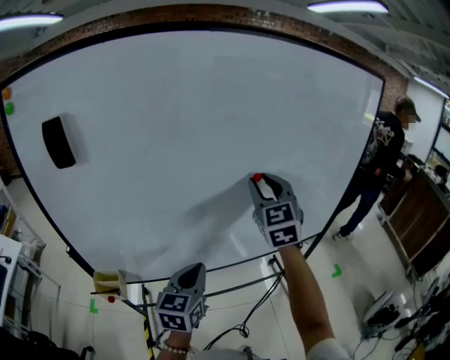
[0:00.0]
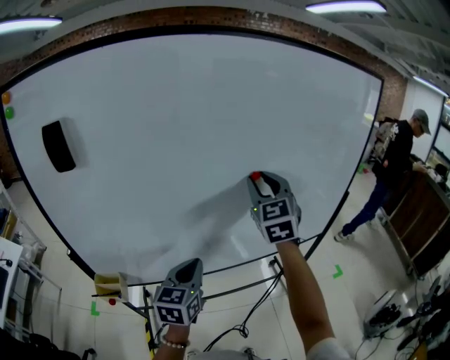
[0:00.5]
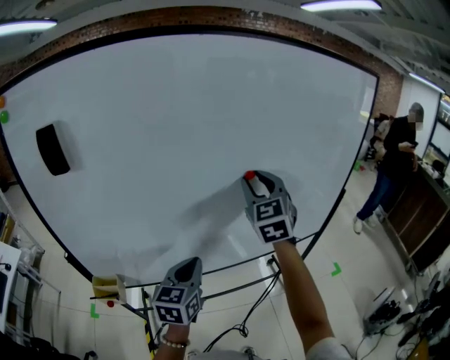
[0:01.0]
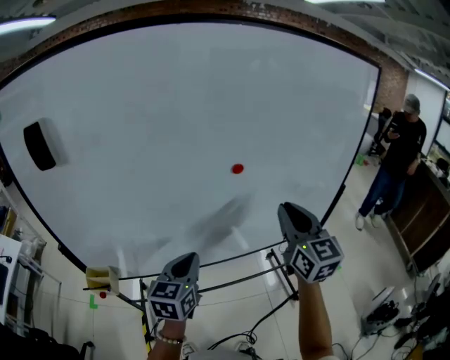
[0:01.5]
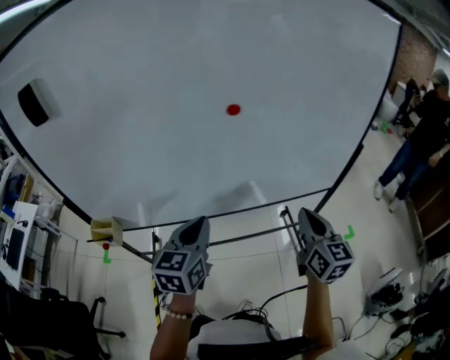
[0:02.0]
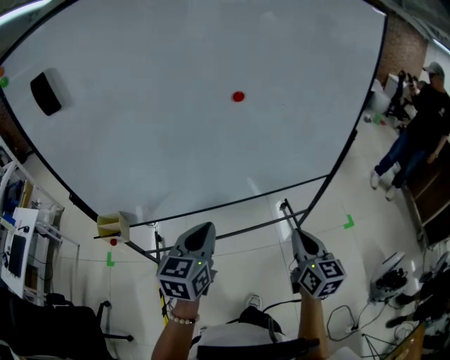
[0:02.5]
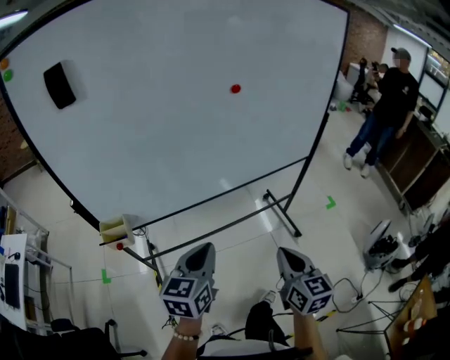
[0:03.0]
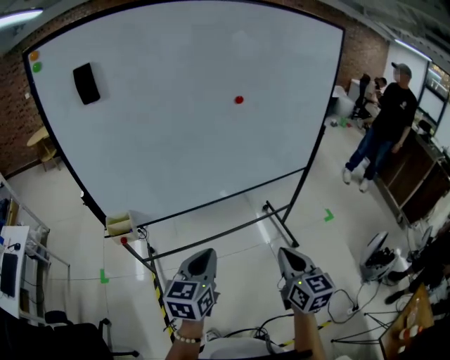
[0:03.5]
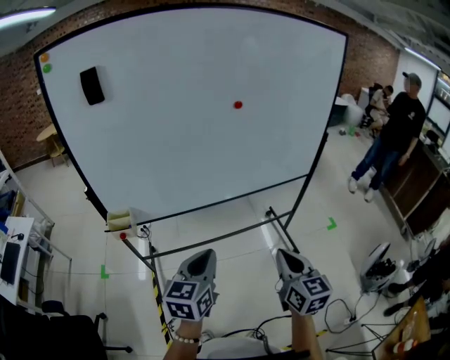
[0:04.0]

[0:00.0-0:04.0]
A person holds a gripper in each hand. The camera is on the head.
0:00.0 to 0:02.0: The left gripper heads to the right, covering roughly 10 cm; the right gripper goes approximately 30 cm to the right, downward and backward, rotates roughly 40 degrees, and closes.
0:02.0 to 0:04.0: The two grippers go about 30 cm backward.

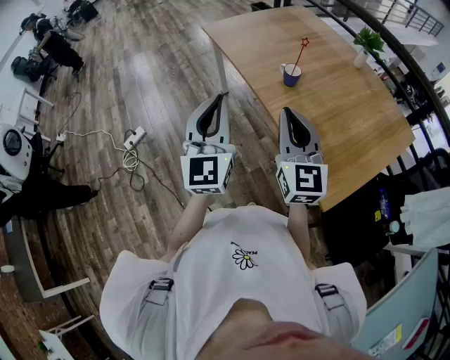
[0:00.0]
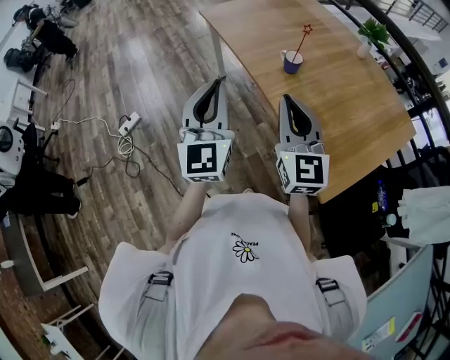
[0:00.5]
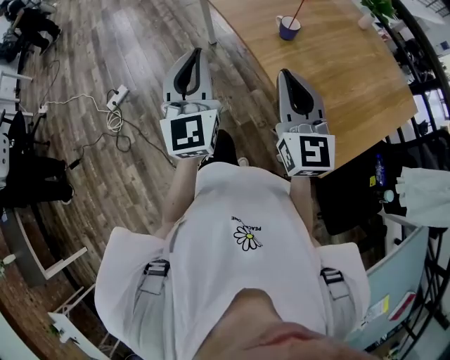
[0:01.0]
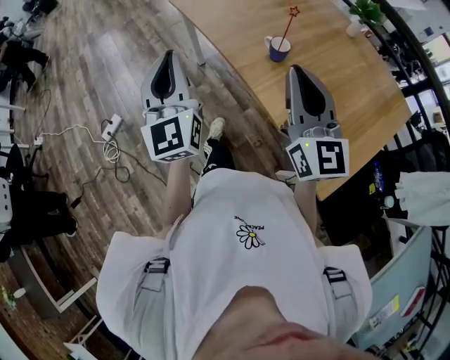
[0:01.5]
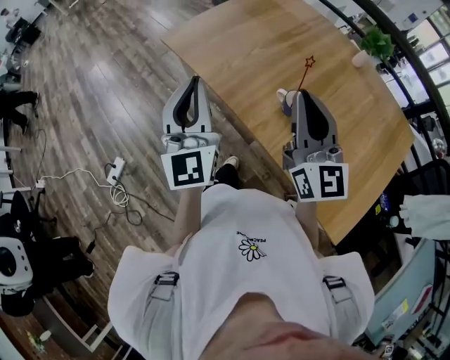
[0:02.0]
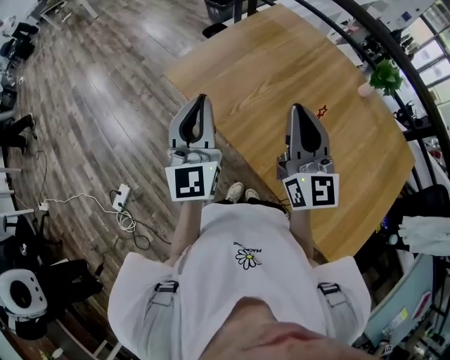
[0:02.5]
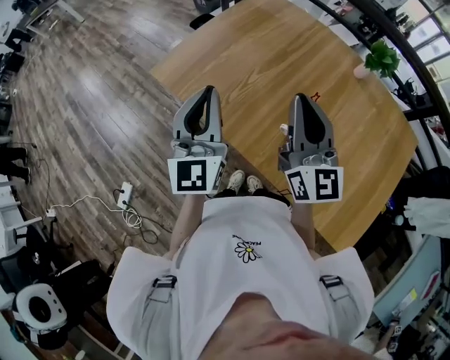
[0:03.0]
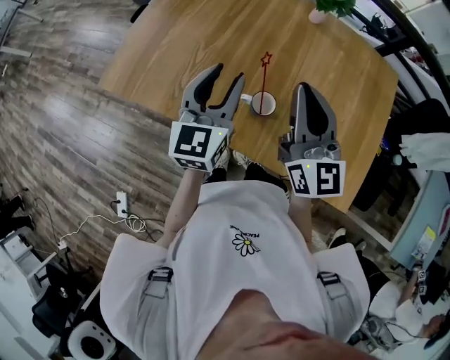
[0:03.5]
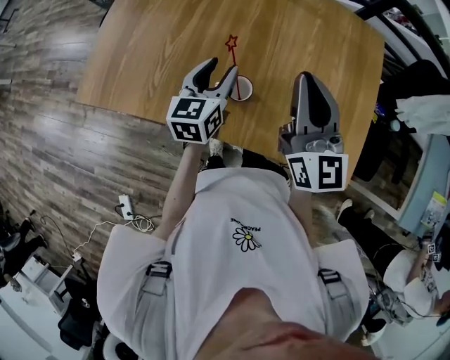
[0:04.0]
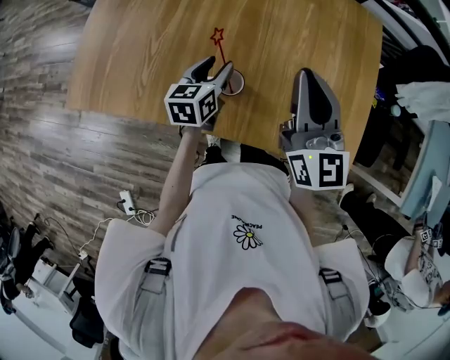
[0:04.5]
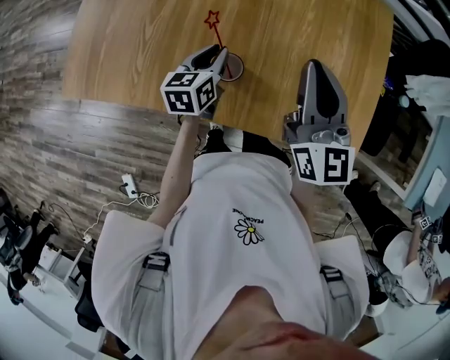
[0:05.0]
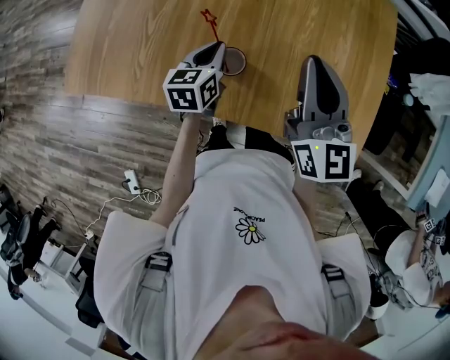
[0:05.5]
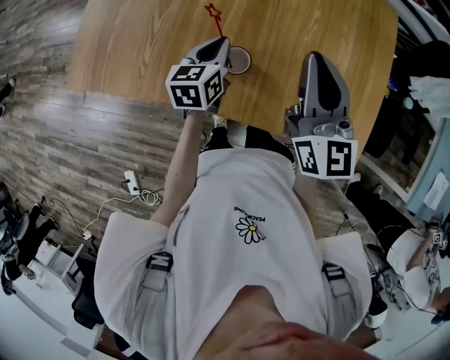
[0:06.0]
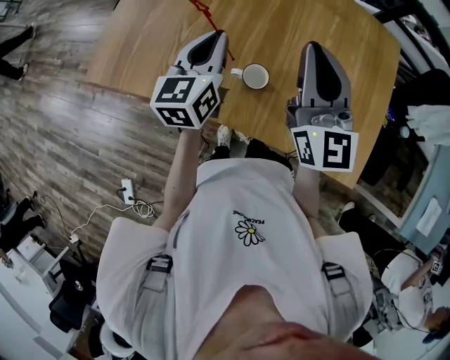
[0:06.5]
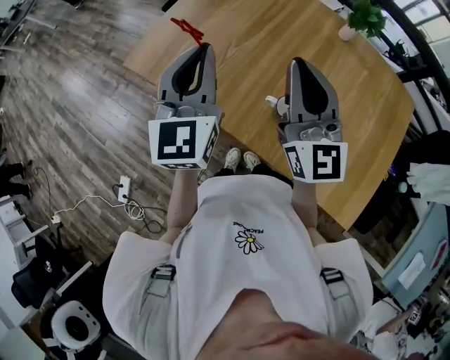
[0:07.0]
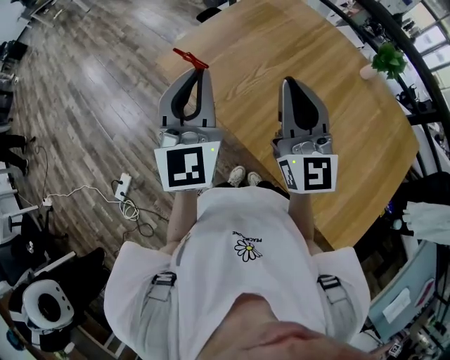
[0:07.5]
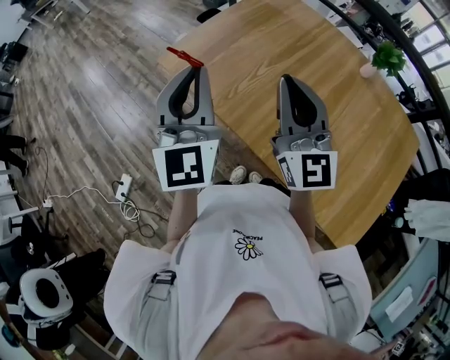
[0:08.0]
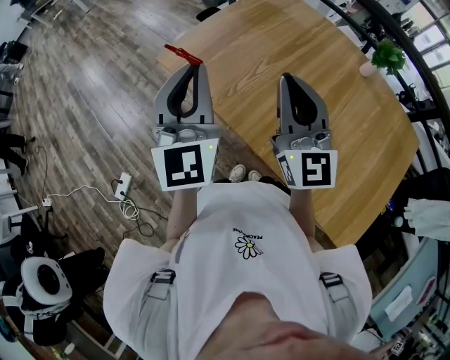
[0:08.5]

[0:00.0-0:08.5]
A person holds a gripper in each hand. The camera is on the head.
0:00.0 to 0:02.0: Both grippers move forward, some 30 cm.
0:02.0 to 0:04.0: The left gripper changes place by roughly 35 cm, tilts its fingers about 30 degrees downward, and opens up. Meanwhile the right gripper changes place by about 15 cm, and rotates roughly 30 degrees.
0:04.0 to 0:06.5: The left gripper shifts approximately 10 cm upward and to the left, and closes its fingers.
0:06.5 to 0:08.5: The right gripper ends up some 20 cm from where it was, and turns by roughly 30 degrees, while the left gripper changes place by approximately 30 cm, and turns by roughly 50 degrees.

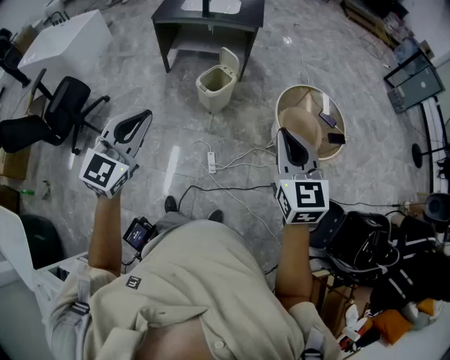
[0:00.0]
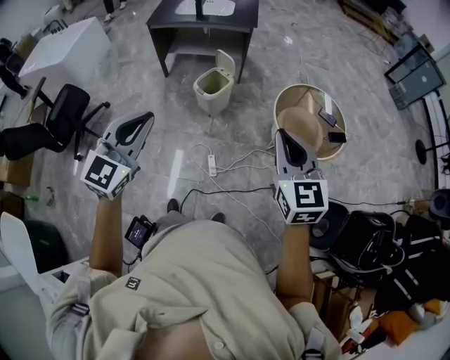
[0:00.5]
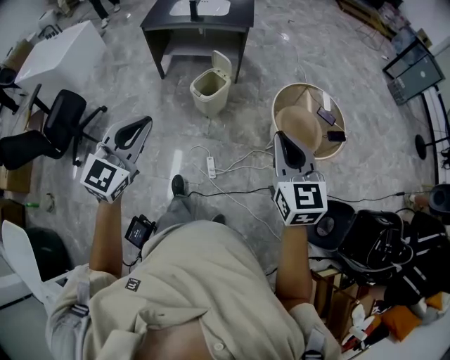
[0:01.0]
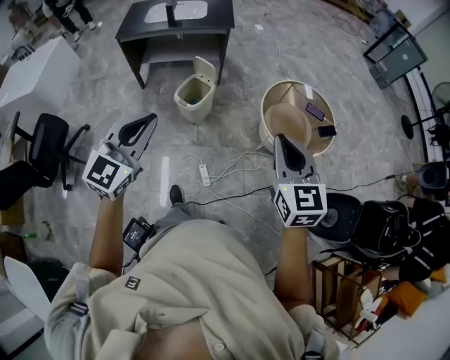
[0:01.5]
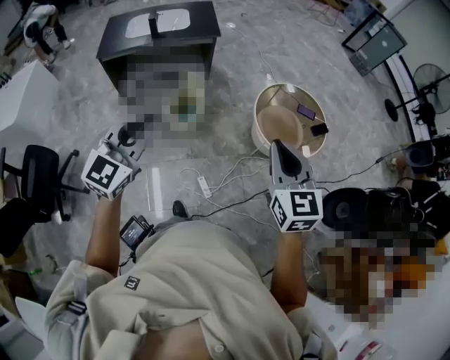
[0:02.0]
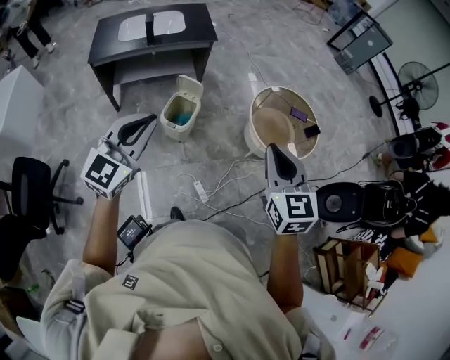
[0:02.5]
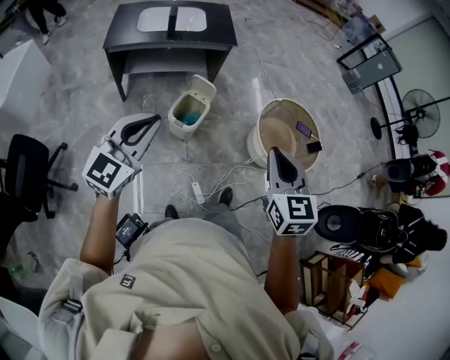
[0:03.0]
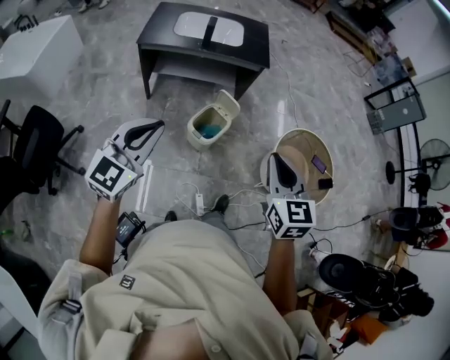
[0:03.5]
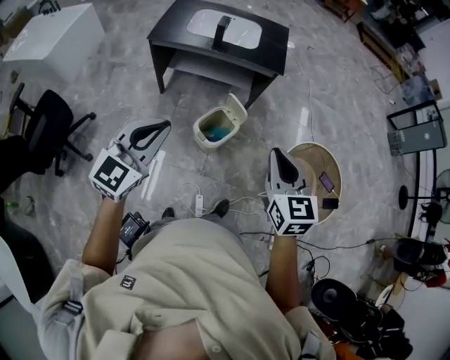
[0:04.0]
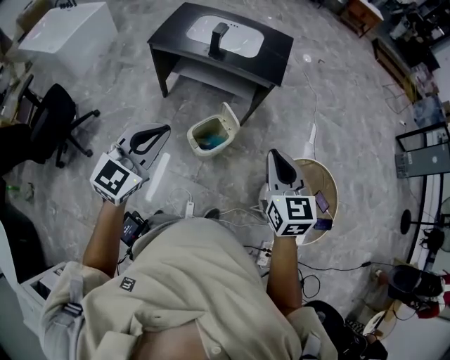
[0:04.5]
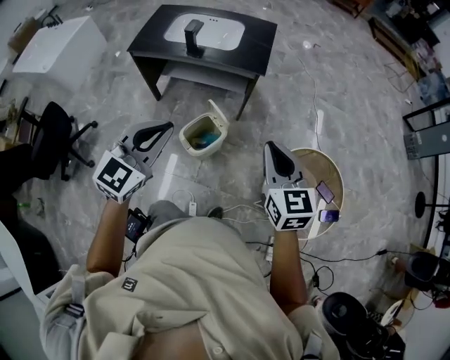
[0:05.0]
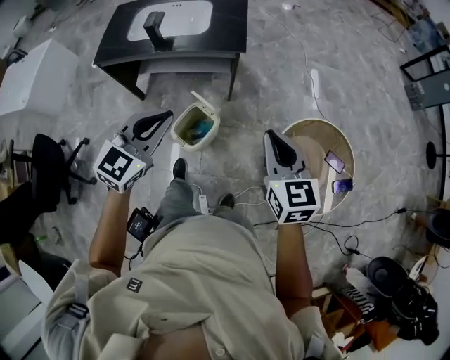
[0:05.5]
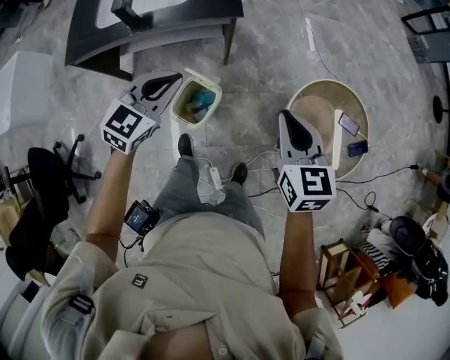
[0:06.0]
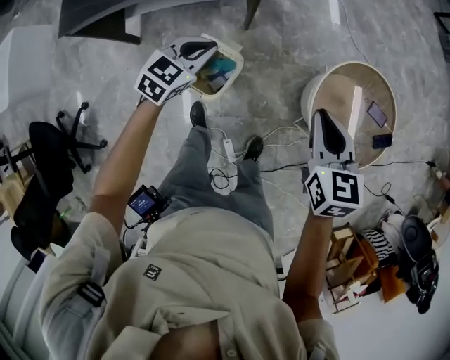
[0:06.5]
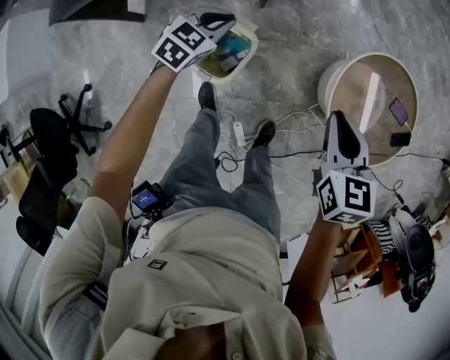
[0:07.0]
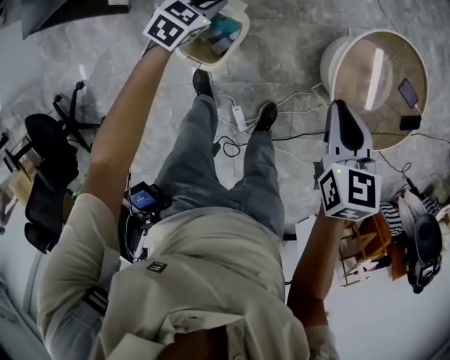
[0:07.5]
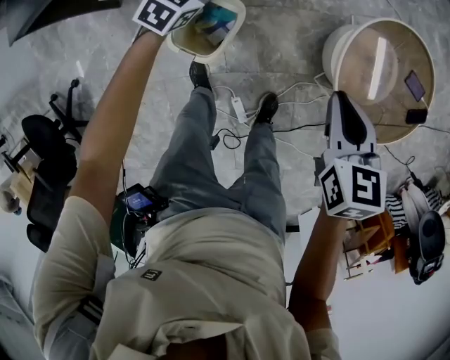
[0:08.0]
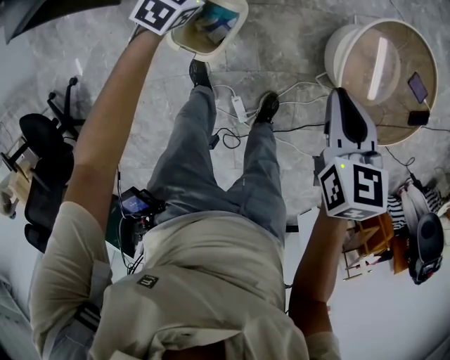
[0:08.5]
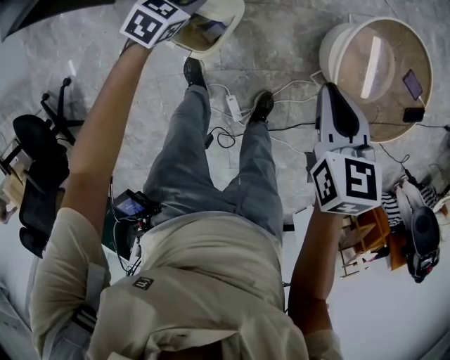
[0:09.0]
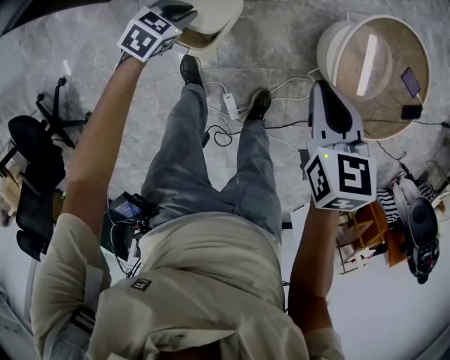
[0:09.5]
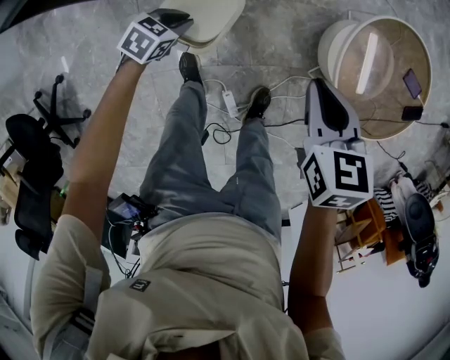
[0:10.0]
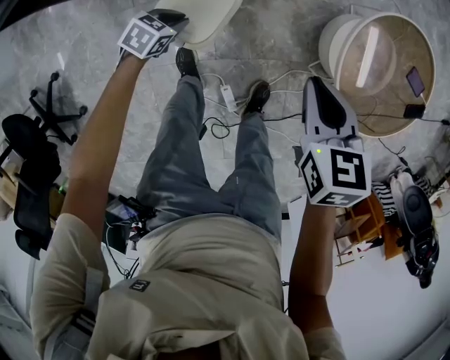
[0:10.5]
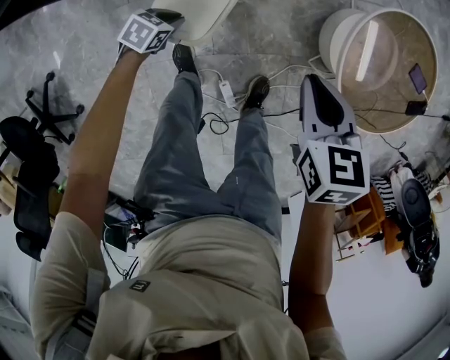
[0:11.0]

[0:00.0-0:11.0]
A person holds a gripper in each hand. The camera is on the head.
0:00.0 to 0:02.0: The left gripper moves forward, roughly 25 cm, and turns by some 20 degrees. The right gripper travels forward and to the left by some 15 cm.
0:02.0 to 0:03.5: The right gripper goes roughly 20 cm to the left and forward, while the left gripper is displaced to the left by roughly 20 cm.
0:03.5 to 0:05.5: The left gripper heads to the right and forward, covering some 40 cm. The right gripper moves forward and to the right, roughly 35 cm.
0:05.5 to 0:07.5: The right gripper travels downward by approximately 30 cm, and turns by about 30 degrees. The left gripper goes about 50 cm downward and forward, and changes its angle by roughly 30 degrees.
0:07.5 to 0:09.0: The left gripper is displaced downward by some 5 cm.
0:09.0 to 0:11.0: The right gripper moves downward, some 5 cm; the left gripper goes some 20 cm downward and backward, and turns by some 20 degrees.

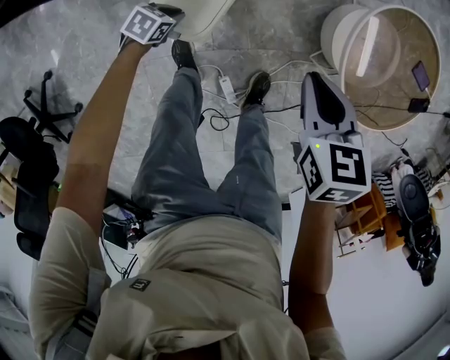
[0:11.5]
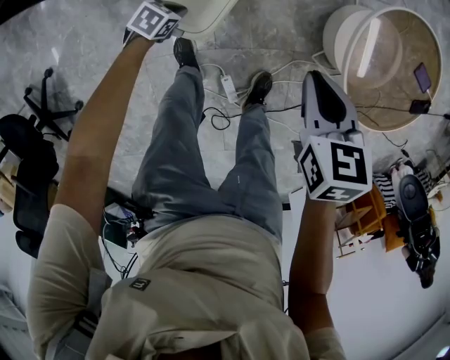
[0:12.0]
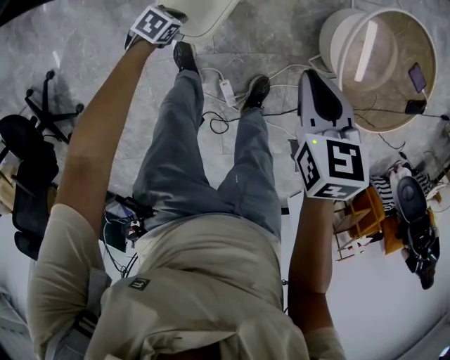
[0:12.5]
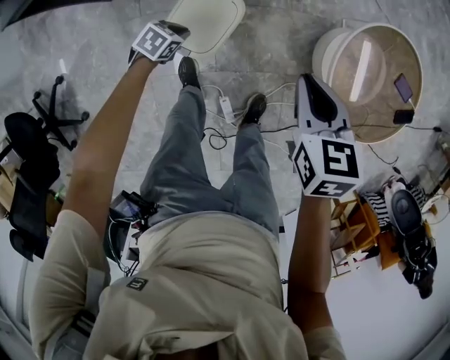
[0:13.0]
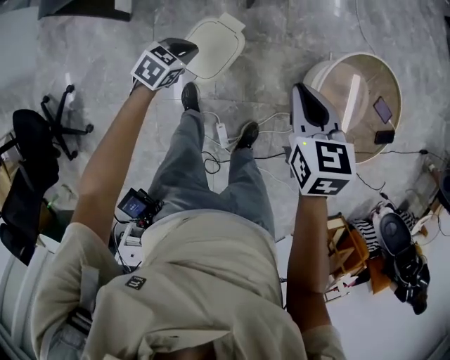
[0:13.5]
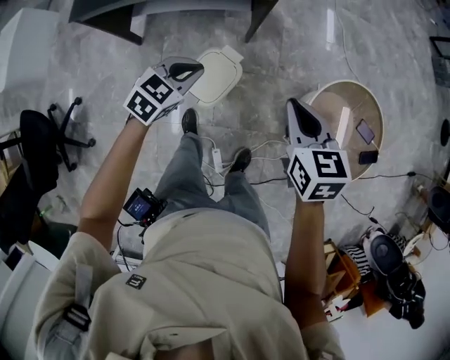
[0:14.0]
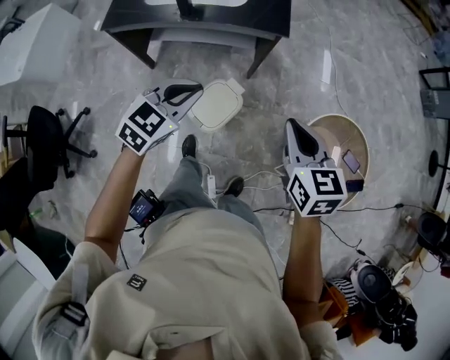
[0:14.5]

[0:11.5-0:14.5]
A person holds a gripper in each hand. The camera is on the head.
0:11.5 to 0:13.0: The grippers both shift upward by roughly 5 cm.
0:13.0 to 0:14.5: The right gripper is displaced upward by approximately 25 cm, and changes its angle by approximately 20 degrees. Meanwhile the left gripper goes some 50 cm upward, and angles its fingers upward, by about 30 degrees.
